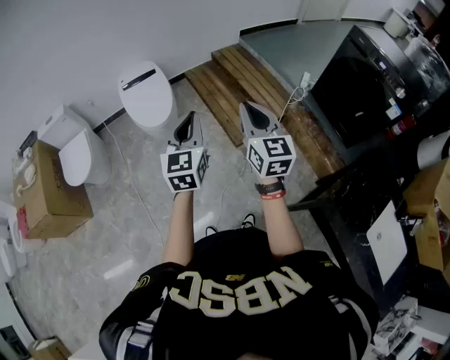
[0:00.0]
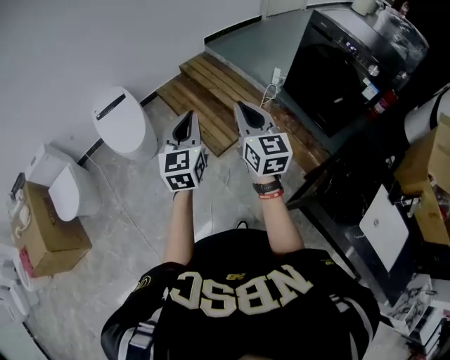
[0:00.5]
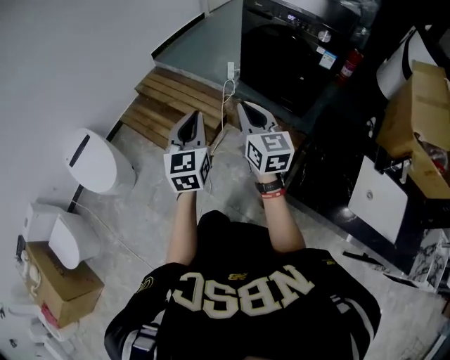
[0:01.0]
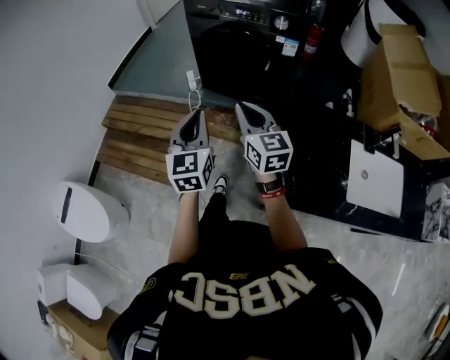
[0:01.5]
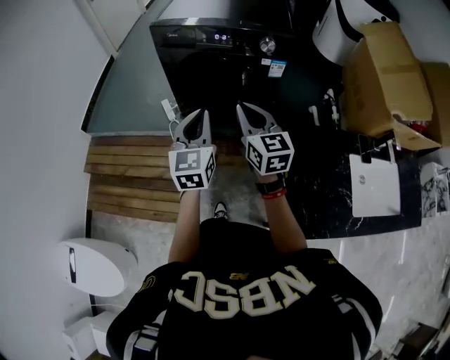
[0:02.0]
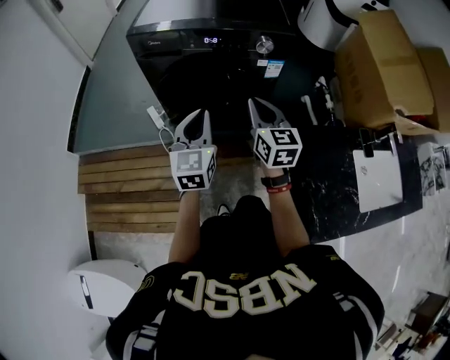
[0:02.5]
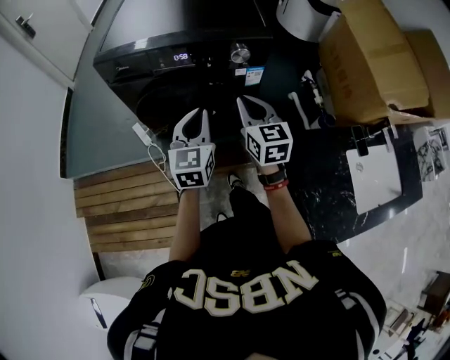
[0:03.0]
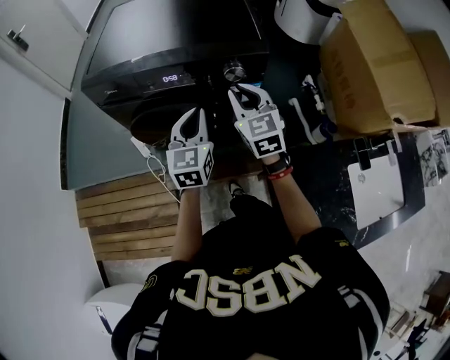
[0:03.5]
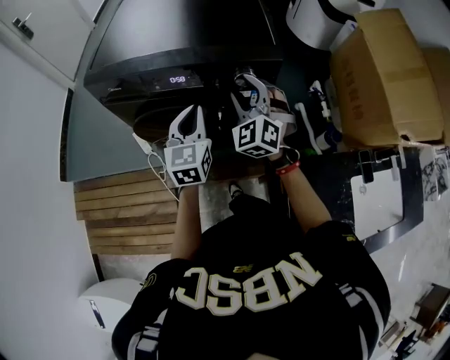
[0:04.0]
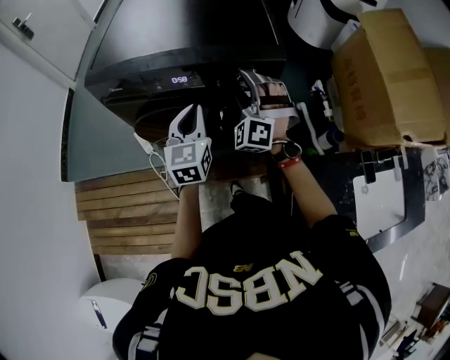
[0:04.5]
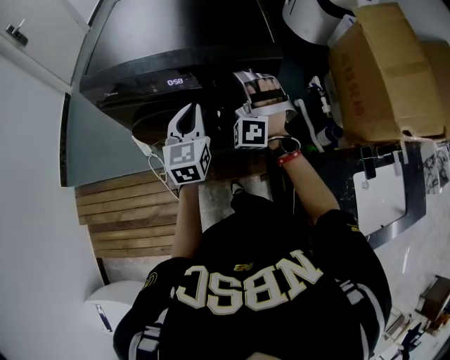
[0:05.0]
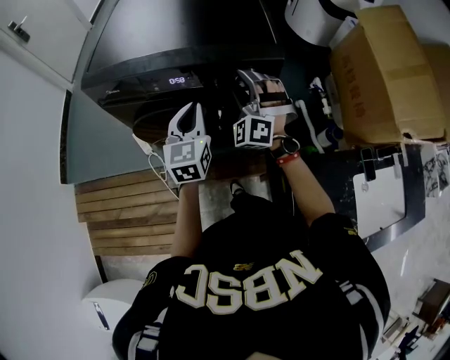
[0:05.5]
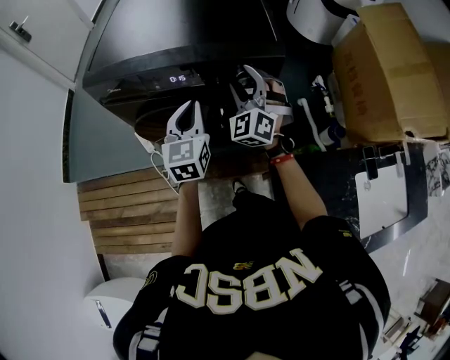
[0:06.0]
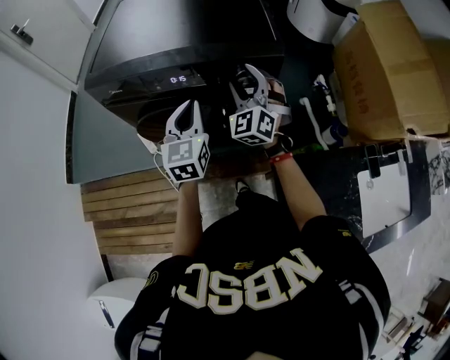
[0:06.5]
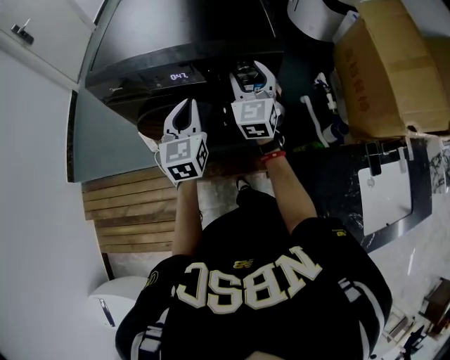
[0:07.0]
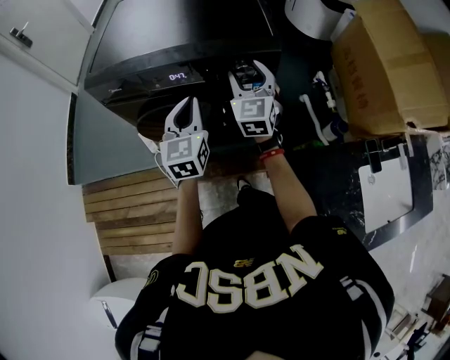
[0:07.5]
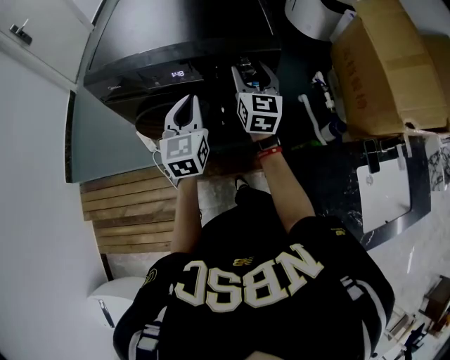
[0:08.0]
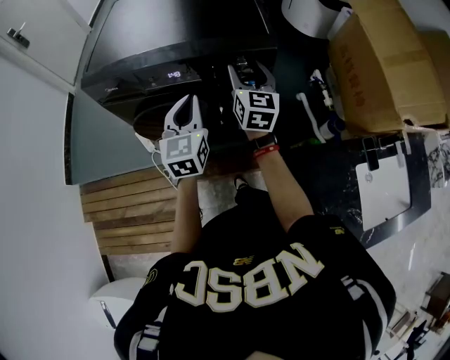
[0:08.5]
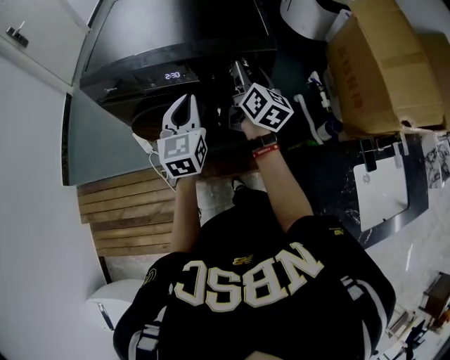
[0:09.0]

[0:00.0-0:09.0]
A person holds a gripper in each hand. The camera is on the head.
0:00.0 to 0:02.0: The pair of grippers is taken about 70 cm. The left gripper turns by approximately 60 degrees. The right gripper swivels approximately 50 degrees.
0:02.0 to 0:04.5: Both grippers travel together forward, about 30 cm. The right gripper rotates around the line of its fingers by about 70 degrees, counterclockwise from behind, and opens its fingers.
0:04.5 to 0:07.0: The right gripper rolls clockwise, seen from behind, by roughly 60 degrees.
0:07.0 to 0:09.0: The right gripper rotates around the line of its fingers by roughly 50 degrees, clockwise from behind.

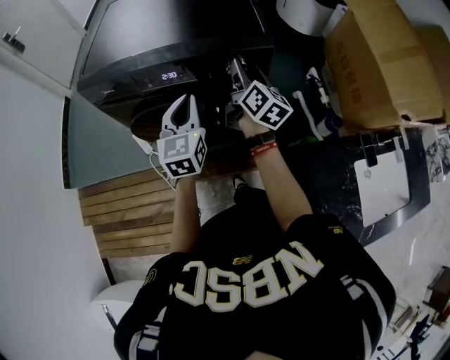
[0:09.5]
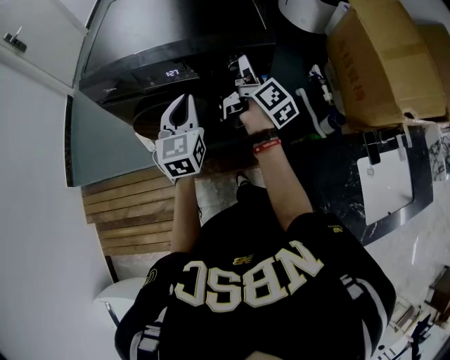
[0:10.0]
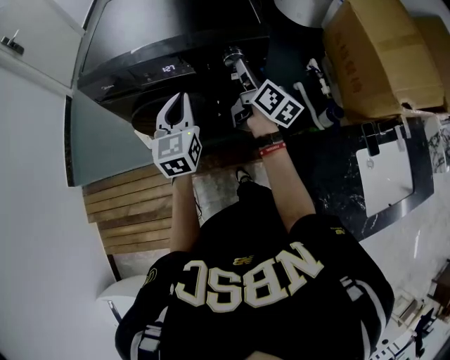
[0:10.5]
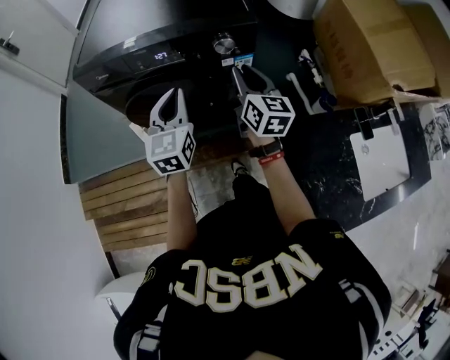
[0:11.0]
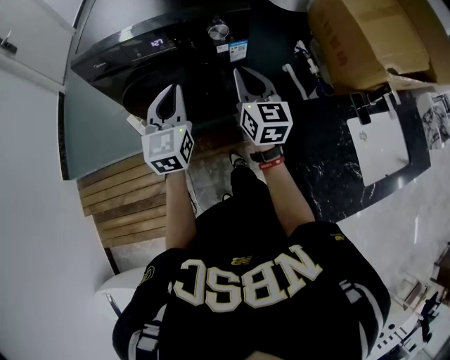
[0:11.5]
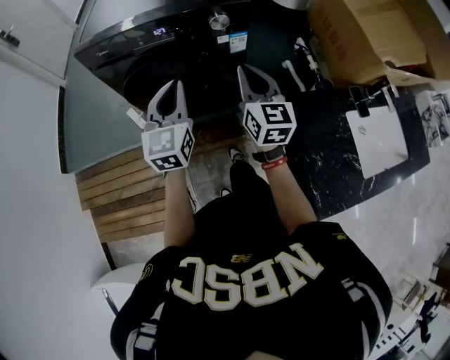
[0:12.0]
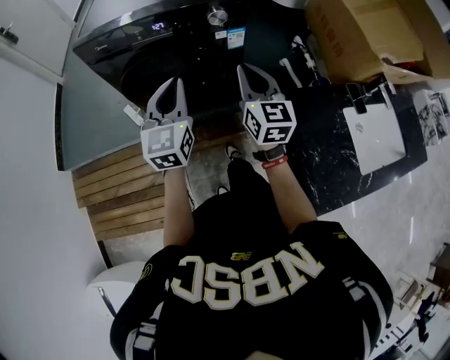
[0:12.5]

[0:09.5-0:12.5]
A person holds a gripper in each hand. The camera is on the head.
0:09.5 to 0:11.0: The left gripper is displaced backward by about 5 cm. Meanwhile the right gripper heads backward, covering approximately 10 cm, rotates about 20 degrees, and closes up.
0:11.0 to 0:12.5: The two grippers go about 10 cm backward.

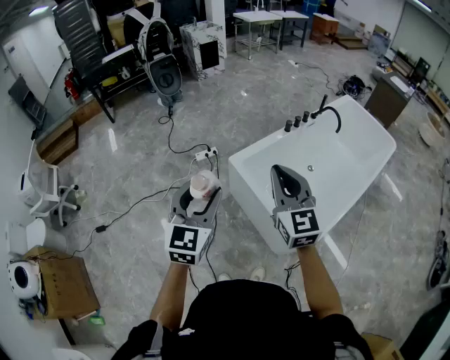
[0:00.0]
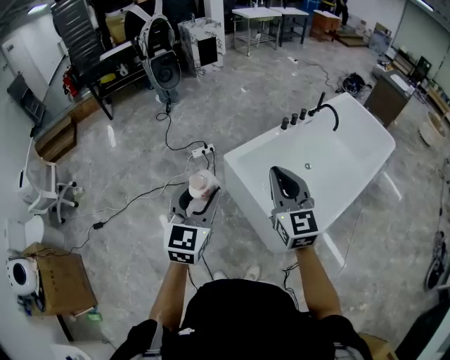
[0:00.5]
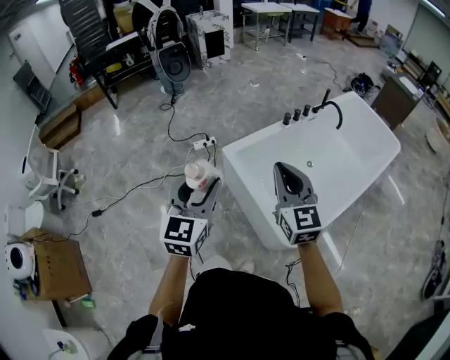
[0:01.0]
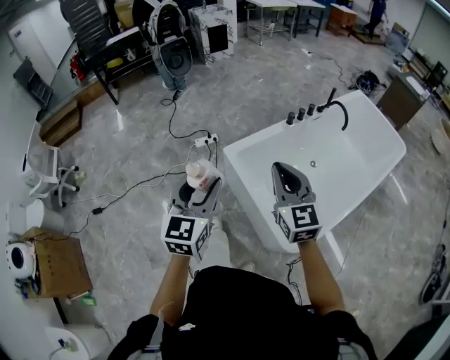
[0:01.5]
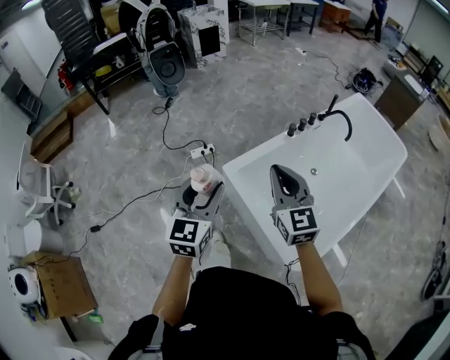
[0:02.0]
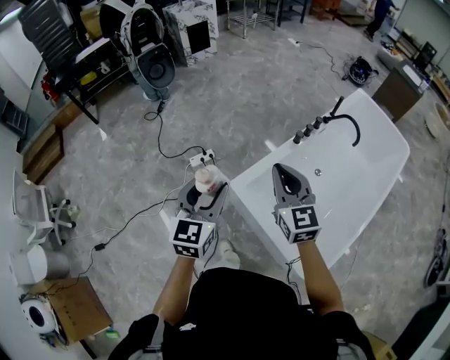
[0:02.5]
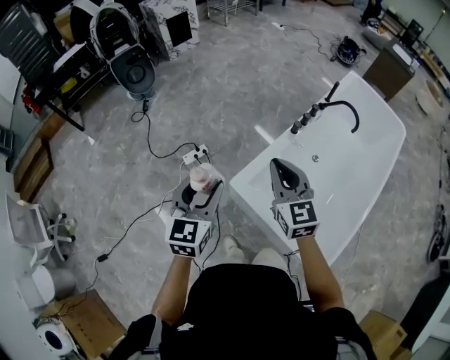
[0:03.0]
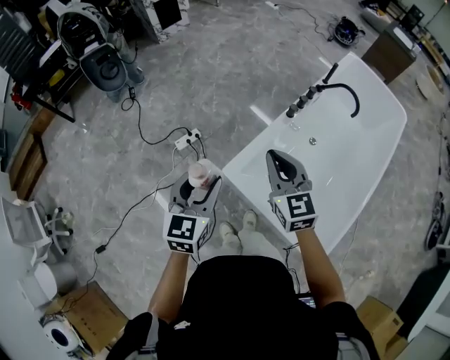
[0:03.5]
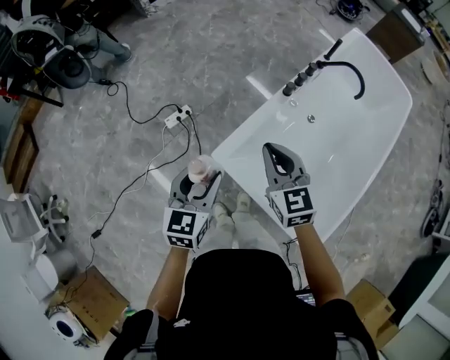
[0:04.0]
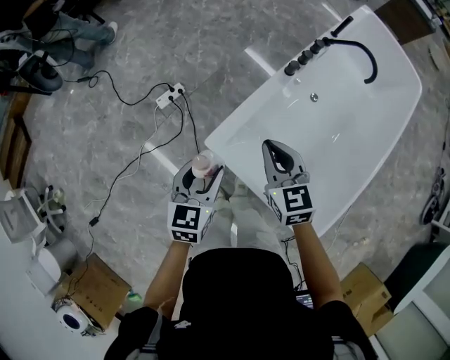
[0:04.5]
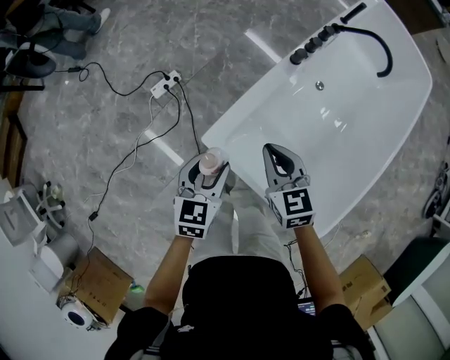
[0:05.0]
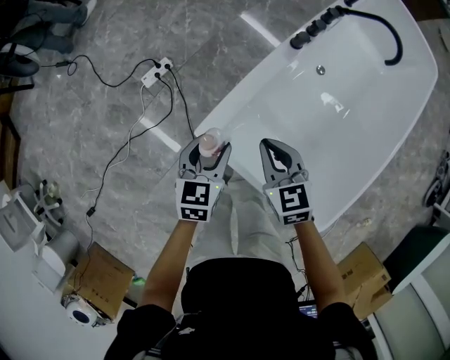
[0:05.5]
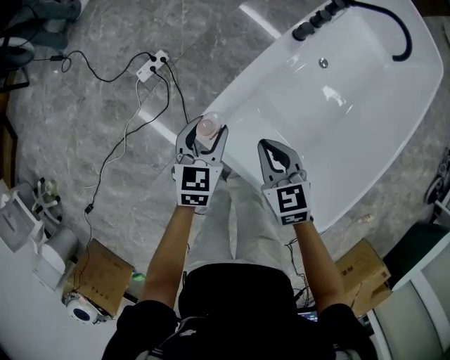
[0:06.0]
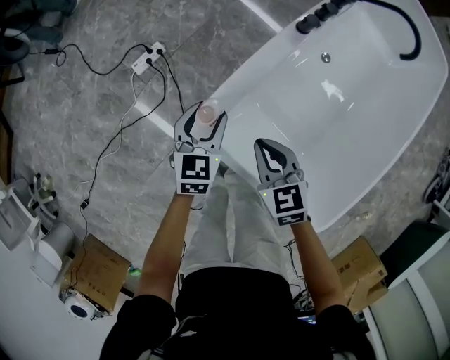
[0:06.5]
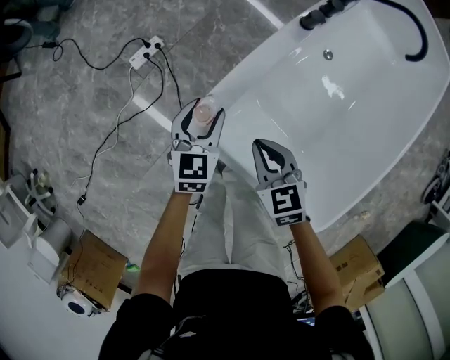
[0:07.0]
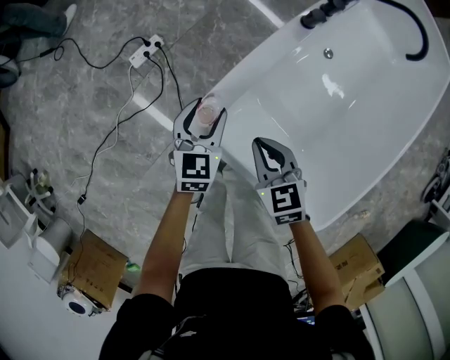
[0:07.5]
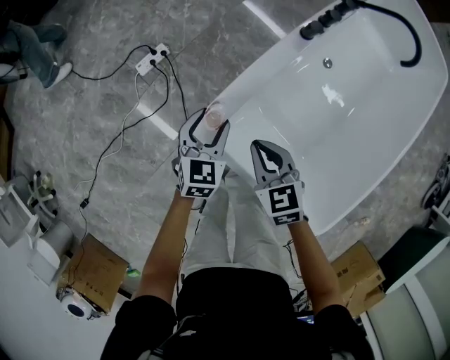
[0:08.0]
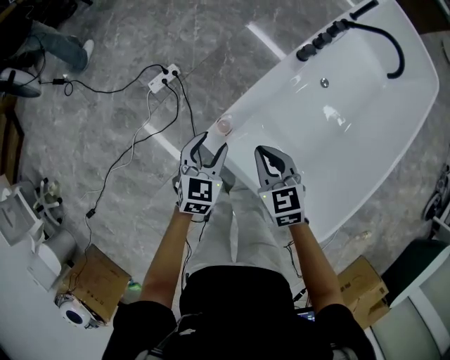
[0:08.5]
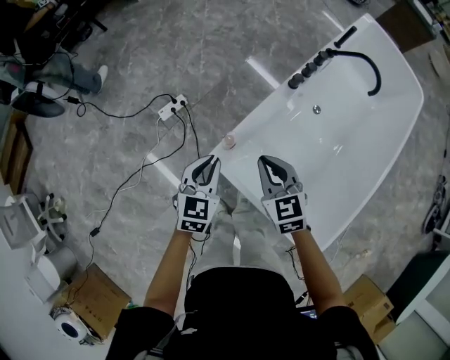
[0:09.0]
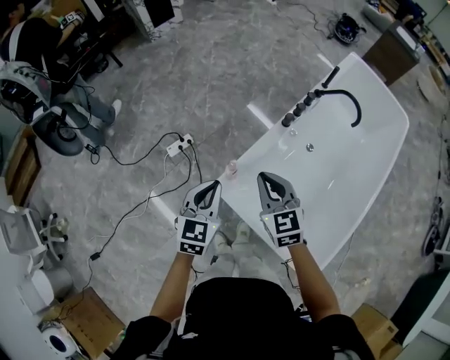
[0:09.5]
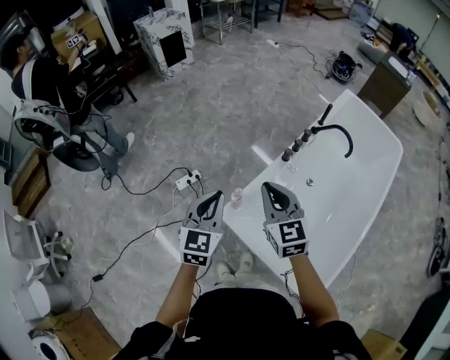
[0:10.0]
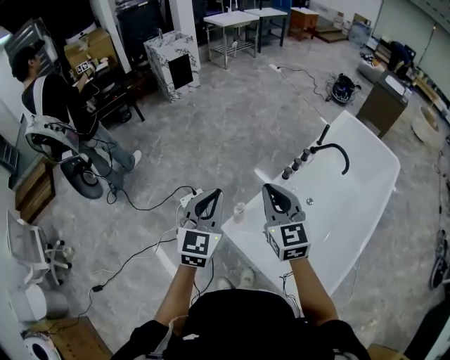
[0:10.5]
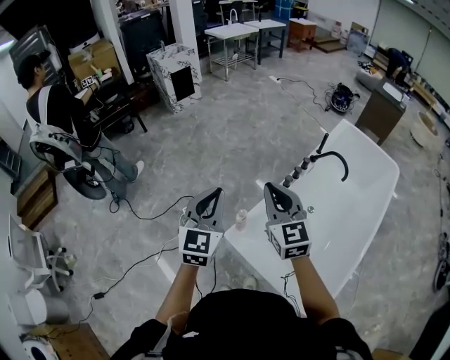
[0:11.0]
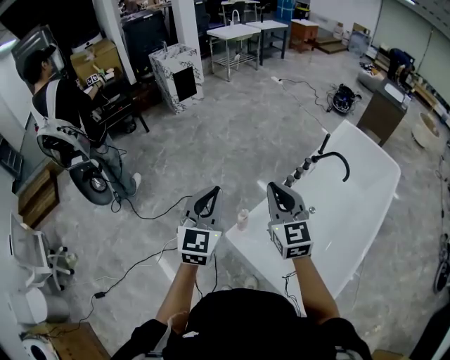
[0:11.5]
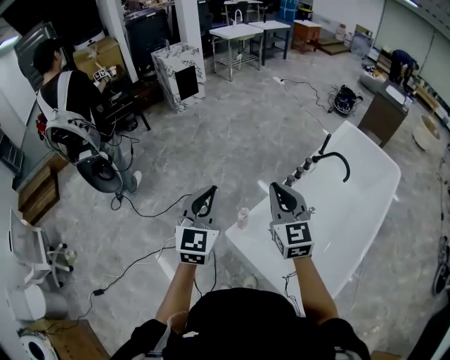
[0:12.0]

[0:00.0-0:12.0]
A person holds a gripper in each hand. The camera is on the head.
0:00.0 to 0:02.0: The grippers both shift forward by approximately 20 cm.
0:02.0 to 0:04.0: Both grippers travel together forward and downward, roughly 25 cm. The right gripper swivels some 20 degrees. Meanwhile the left gripper rotates approximately 20 degrees.
0:04.0 to 0:06.0: The left gripper heads downward and forward, covering approximately 30 cm. Meanwhile the right gripper goes roughly 25 cm downward, and changes its angle by about 20 degrees.
0:06.0 to 0:08.0: There are only small adjustments of the grippers.
0:08.0 to 0:10.0: The grippers both shift upward by approximately 40 cm. The right gripper changes its angle by about 30 degrees. Meanwhile the left gripper changes its angle by roughly 20 degrees, and closes.
0:10.0 to 0:12.0: Both grippers move upward, about 15 cm.

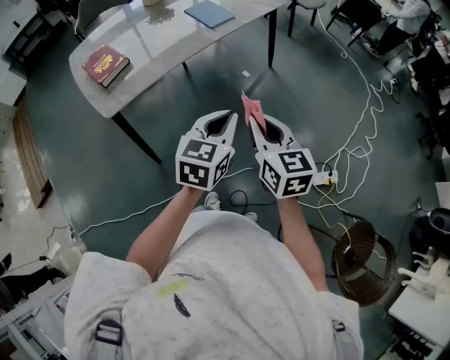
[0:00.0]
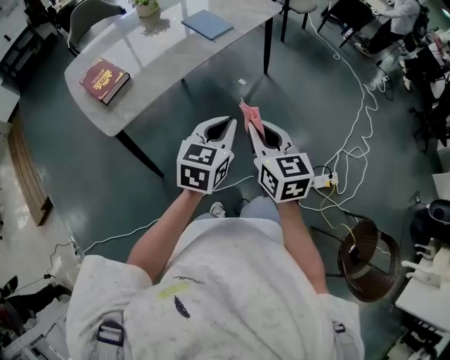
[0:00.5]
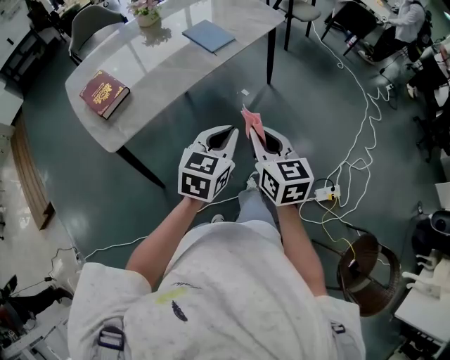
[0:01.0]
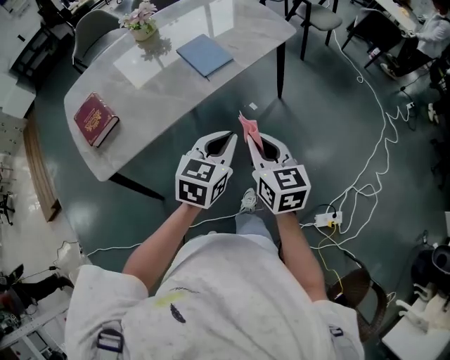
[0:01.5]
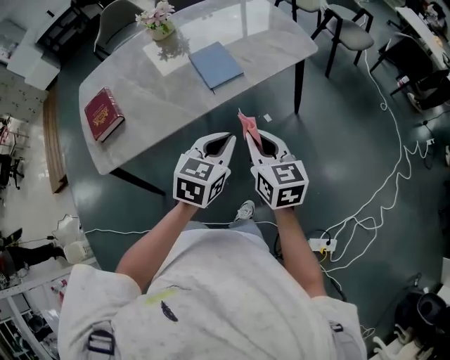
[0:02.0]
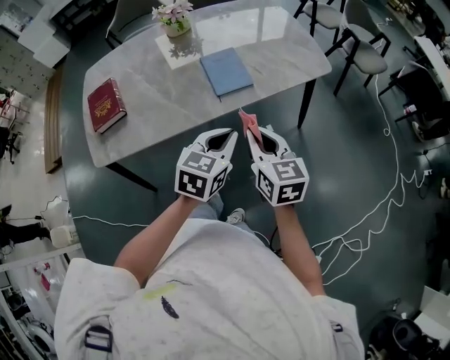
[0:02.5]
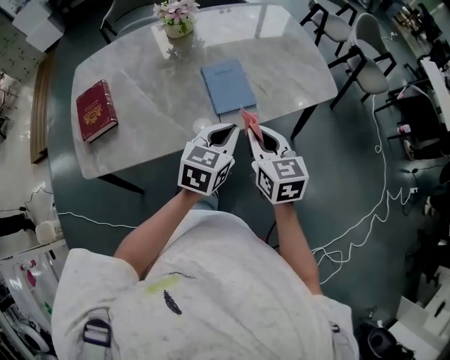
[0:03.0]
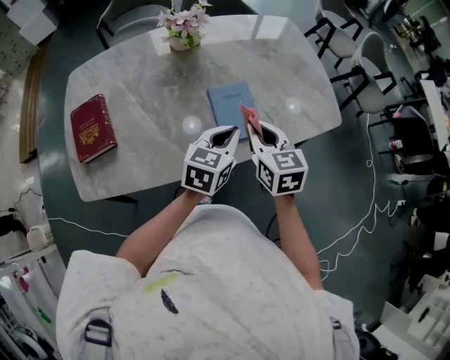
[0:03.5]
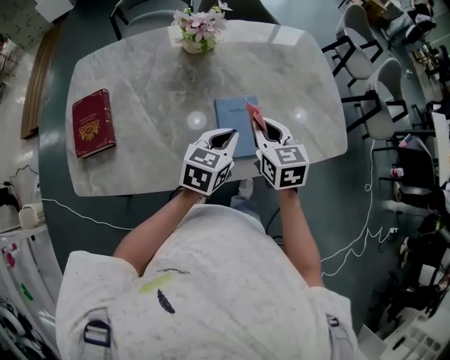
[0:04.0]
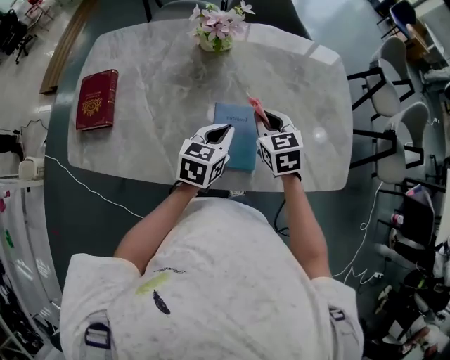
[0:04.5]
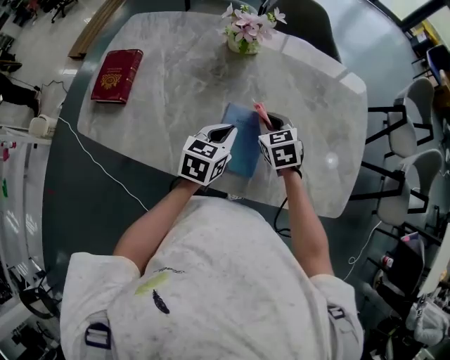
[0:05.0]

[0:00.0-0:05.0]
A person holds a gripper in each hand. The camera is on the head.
0:00.0 to 0:02.5: Both grippers travel together forward, about 40 cm. The right gripper turns by approximately 20 degrees.
0:02.5 to 0:05.0: The left gripper ends up some 35 cm from where it was, and rotates roughly 40 degrees; the right gripper changes place by roughly 40 cm, and changes its angle by approximately 50 degrees.
